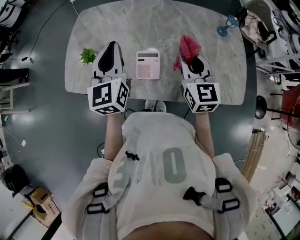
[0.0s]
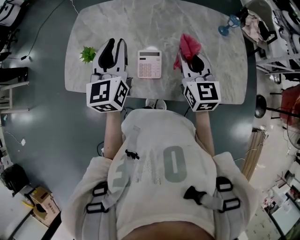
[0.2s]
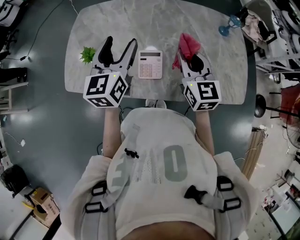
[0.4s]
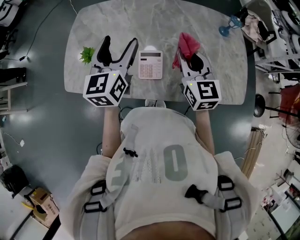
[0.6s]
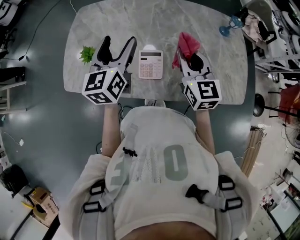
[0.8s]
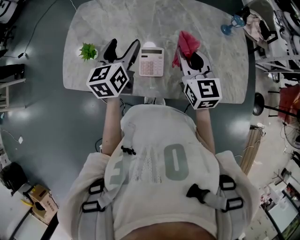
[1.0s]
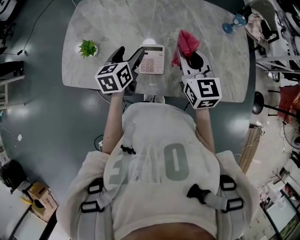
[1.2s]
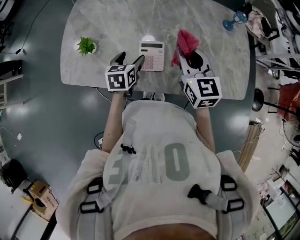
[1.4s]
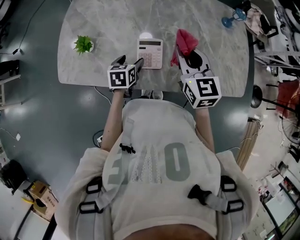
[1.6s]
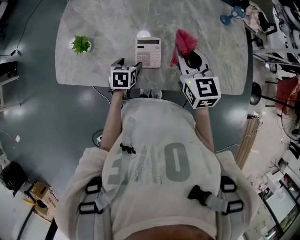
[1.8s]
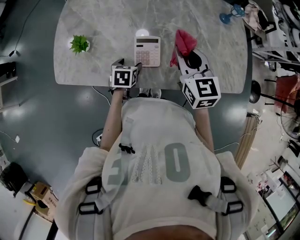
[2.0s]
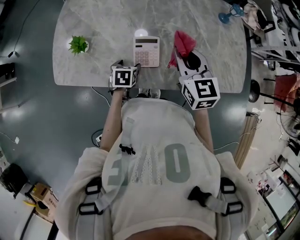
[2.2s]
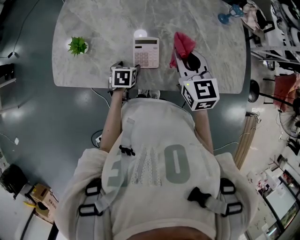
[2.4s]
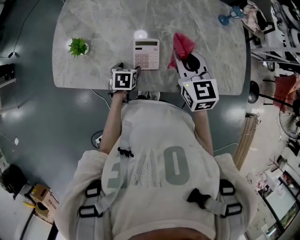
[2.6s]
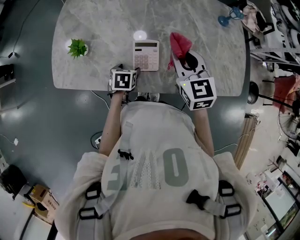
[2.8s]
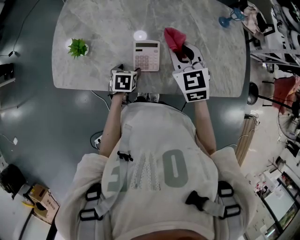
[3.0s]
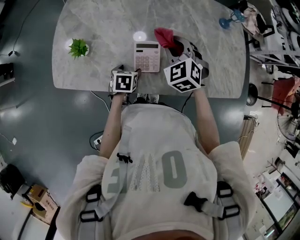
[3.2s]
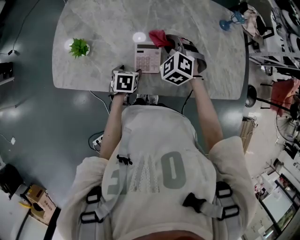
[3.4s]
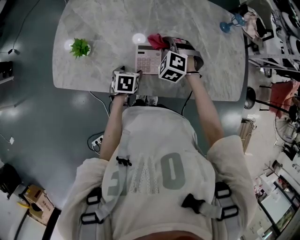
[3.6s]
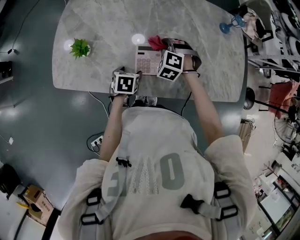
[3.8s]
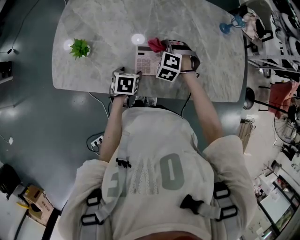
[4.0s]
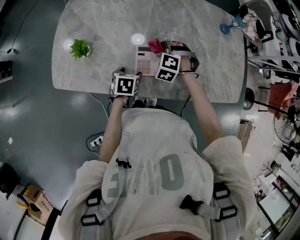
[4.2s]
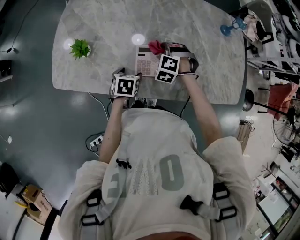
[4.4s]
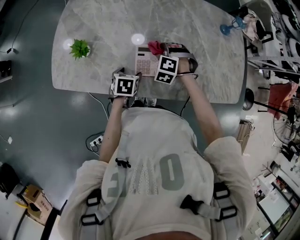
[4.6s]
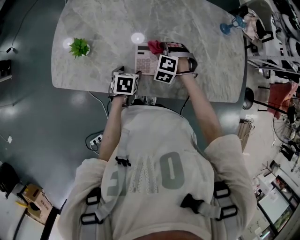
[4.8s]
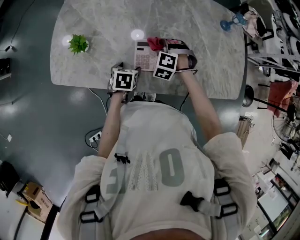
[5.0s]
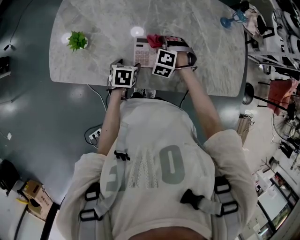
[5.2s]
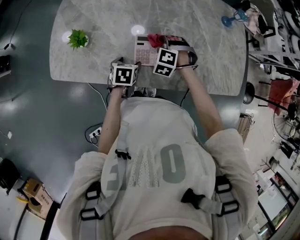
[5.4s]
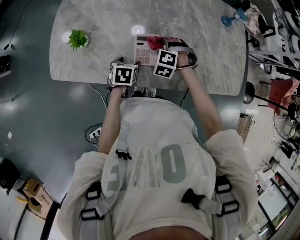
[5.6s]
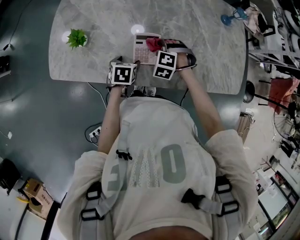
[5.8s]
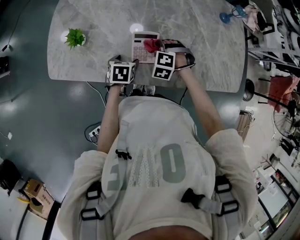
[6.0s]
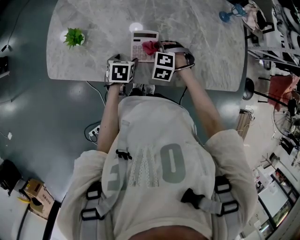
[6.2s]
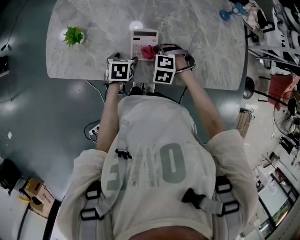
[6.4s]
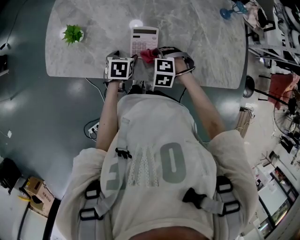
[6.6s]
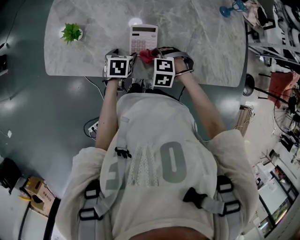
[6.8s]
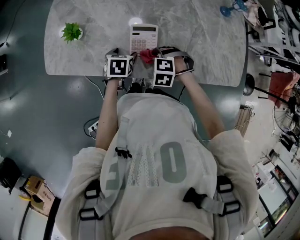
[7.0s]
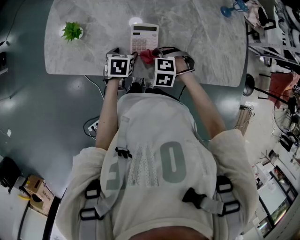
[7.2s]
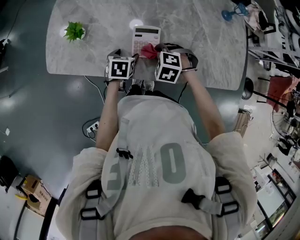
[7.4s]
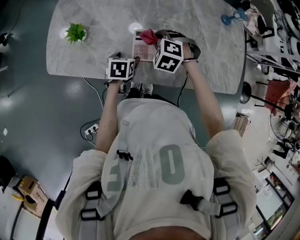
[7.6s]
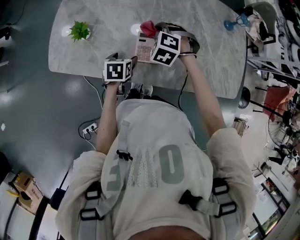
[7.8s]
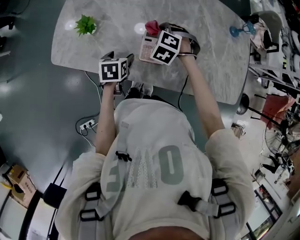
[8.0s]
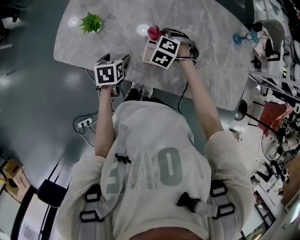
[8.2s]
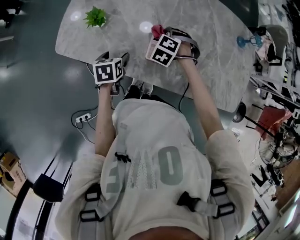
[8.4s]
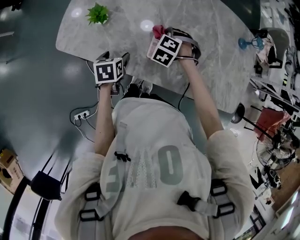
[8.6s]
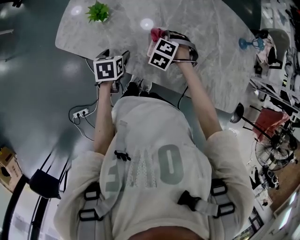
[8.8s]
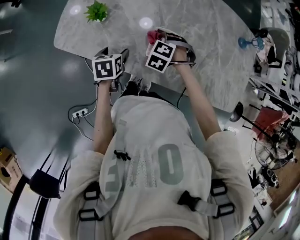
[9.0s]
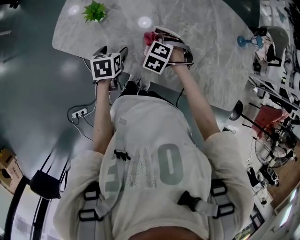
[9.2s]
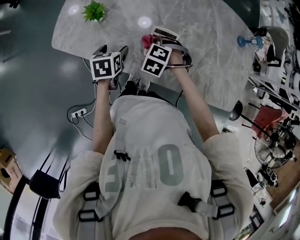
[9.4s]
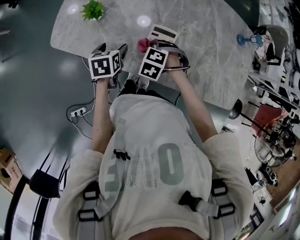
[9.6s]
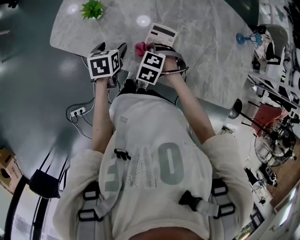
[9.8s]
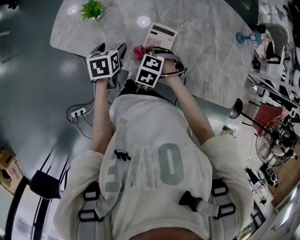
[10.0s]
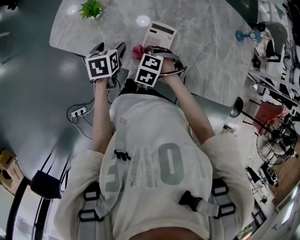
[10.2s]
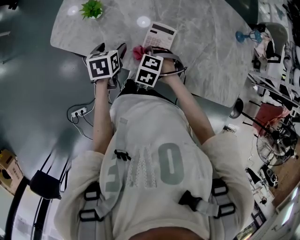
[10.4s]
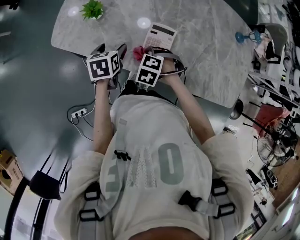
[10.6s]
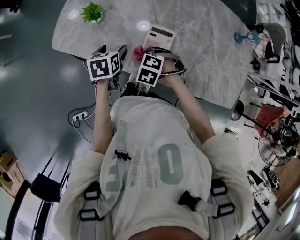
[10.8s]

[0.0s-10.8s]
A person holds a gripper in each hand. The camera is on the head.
0.0s to 1.6s: The right gripper shifts by approximately 5 cm, while the left gripper heads downward, covering about 30 cm, tilts its fingers roughly 40 degrees downward, and opens.
1.6s to 3.0s: The left gripper goes roughly 5 cm downward.
3.0s to 4.6s: The right gripper goes about 20 cm downward, and rotates around the line of its fingers by about 50 degrees, counterclockwise from behind.
4.6s to 6.2s: The right gripper heads backward, covering some 5 cm.
6.2s to 7.8s: The right gripper moves upward, about 10 cm.
7.8s to 9.2s: The right gripper shifts approximately 10 cm downward. Meanwhile the left gripper moves to the left, some 10 cm.
9.2s to 10.8s: The right gripper moves some 10 cm.

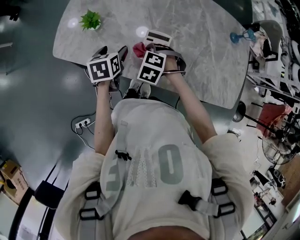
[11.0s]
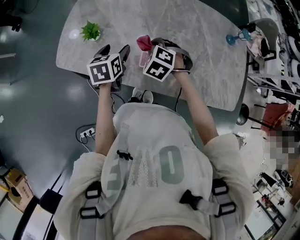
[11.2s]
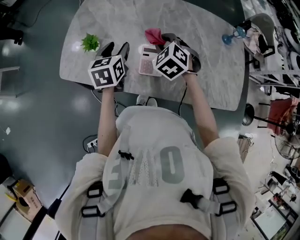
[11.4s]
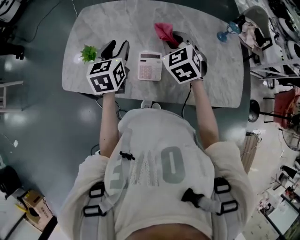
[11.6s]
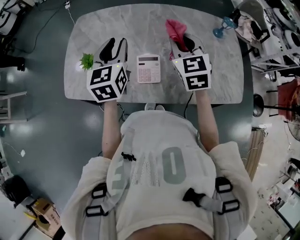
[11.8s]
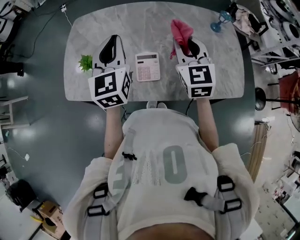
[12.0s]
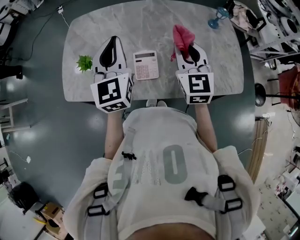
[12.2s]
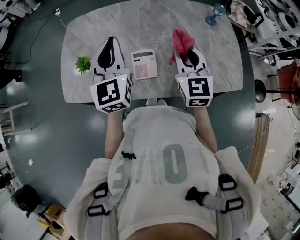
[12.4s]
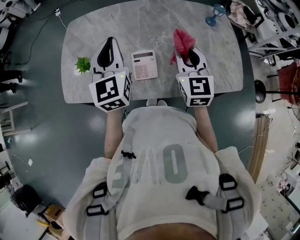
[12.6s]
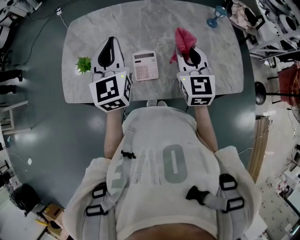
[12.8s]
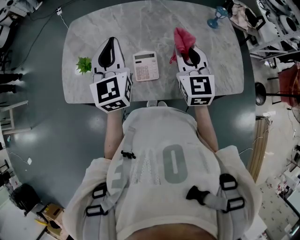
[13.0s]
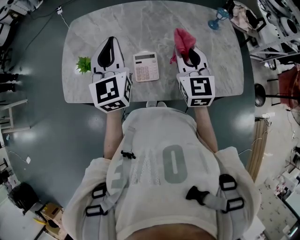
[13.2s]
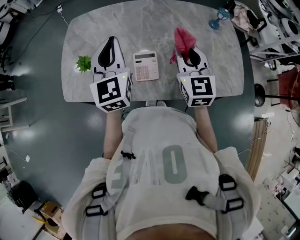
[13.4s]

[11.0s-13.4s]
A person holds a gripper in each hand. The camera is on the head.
11.0s to 12.2s: The grippers both shift upward and to the right by about 30 cm. The right gripper tips its fingers upward by about 60 degrees; the left gripper tips its fingers upward by roughly 40 degrees, and closes up.
12.2s to 13.4s: The grippers stay close to where they were, moving slightly.

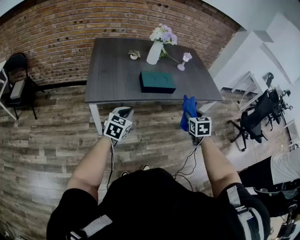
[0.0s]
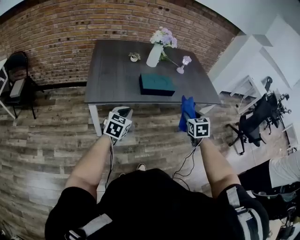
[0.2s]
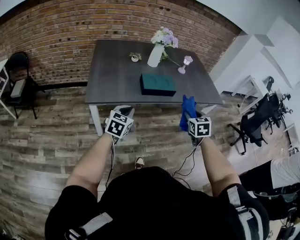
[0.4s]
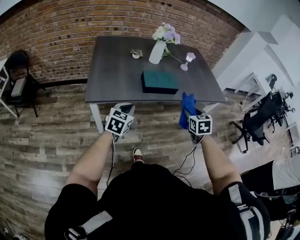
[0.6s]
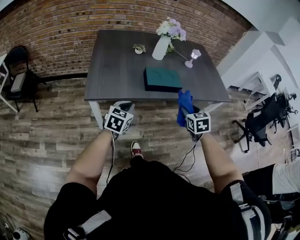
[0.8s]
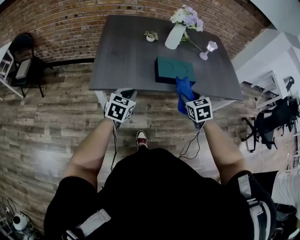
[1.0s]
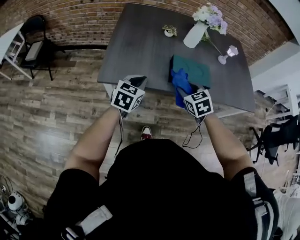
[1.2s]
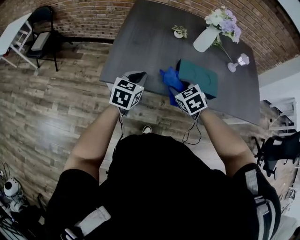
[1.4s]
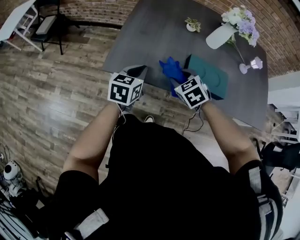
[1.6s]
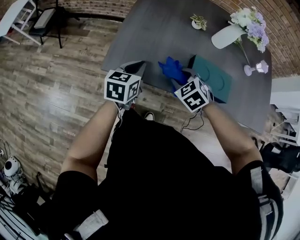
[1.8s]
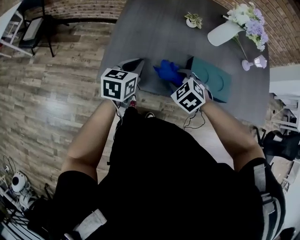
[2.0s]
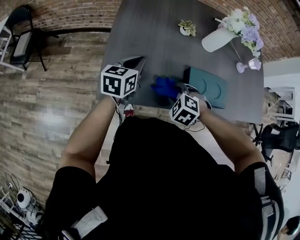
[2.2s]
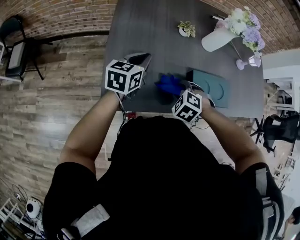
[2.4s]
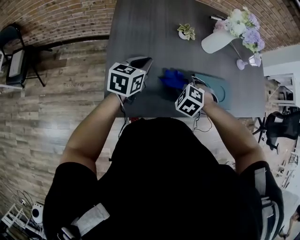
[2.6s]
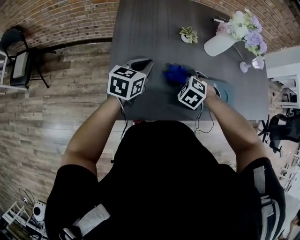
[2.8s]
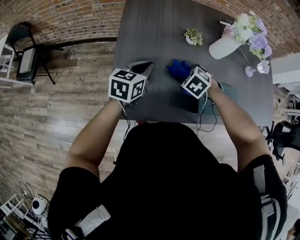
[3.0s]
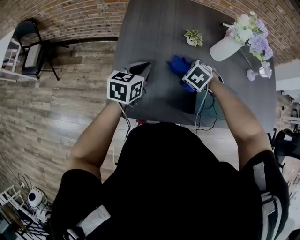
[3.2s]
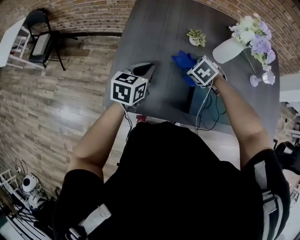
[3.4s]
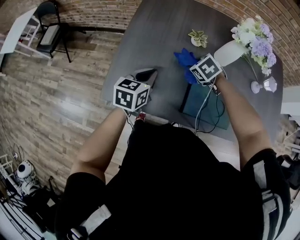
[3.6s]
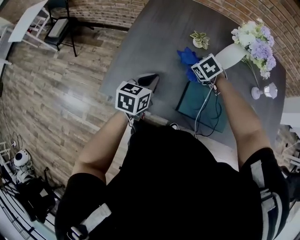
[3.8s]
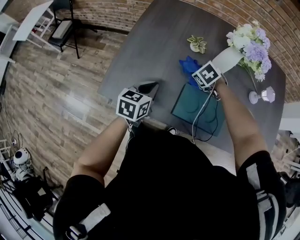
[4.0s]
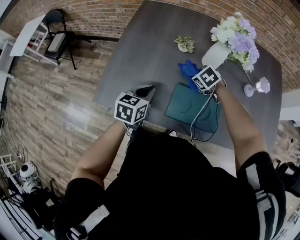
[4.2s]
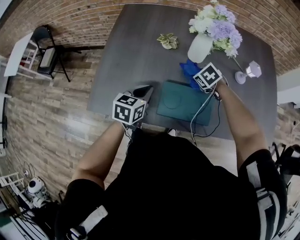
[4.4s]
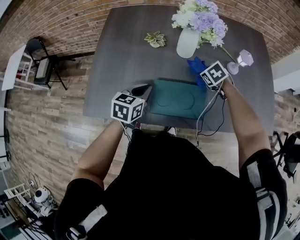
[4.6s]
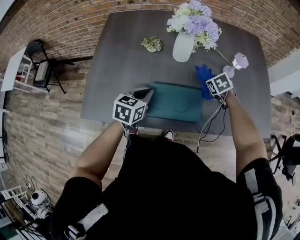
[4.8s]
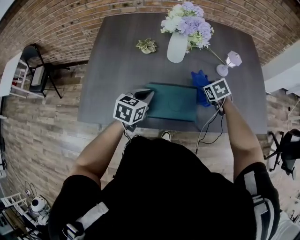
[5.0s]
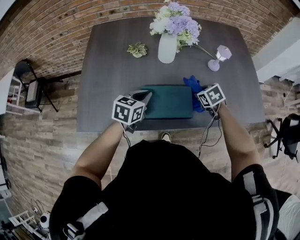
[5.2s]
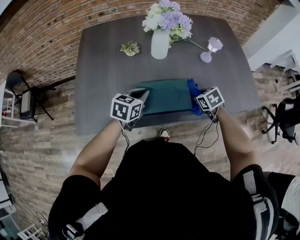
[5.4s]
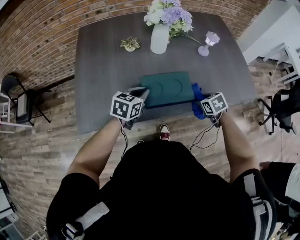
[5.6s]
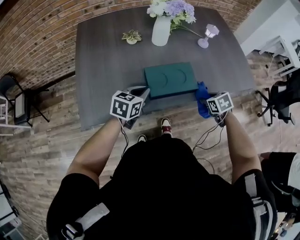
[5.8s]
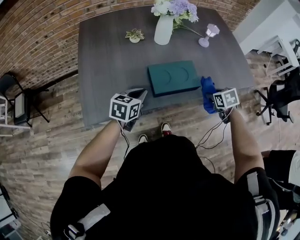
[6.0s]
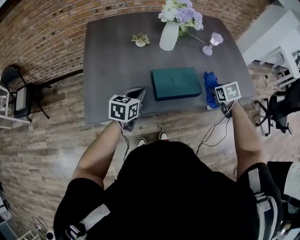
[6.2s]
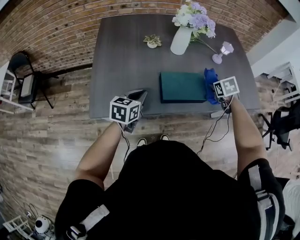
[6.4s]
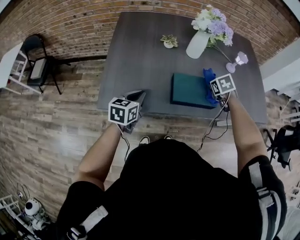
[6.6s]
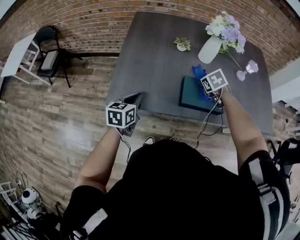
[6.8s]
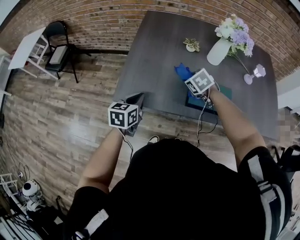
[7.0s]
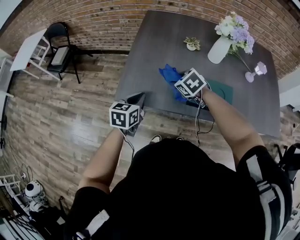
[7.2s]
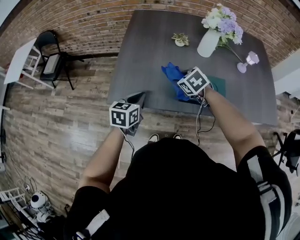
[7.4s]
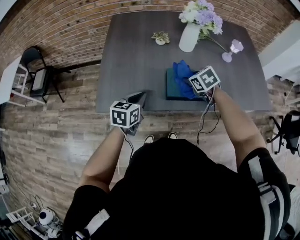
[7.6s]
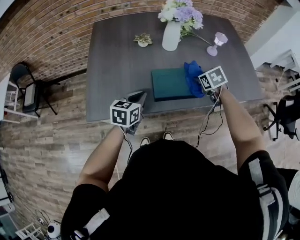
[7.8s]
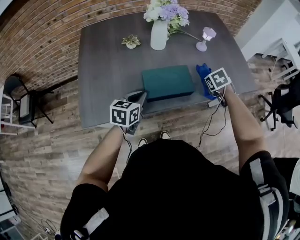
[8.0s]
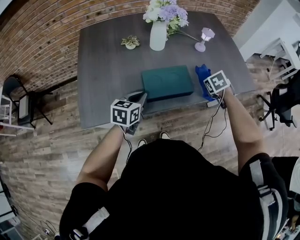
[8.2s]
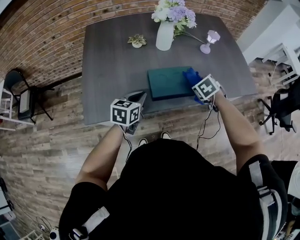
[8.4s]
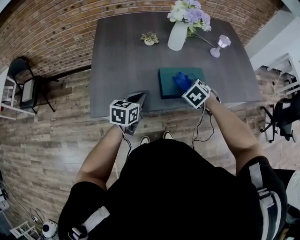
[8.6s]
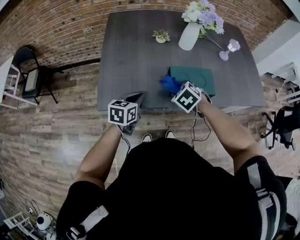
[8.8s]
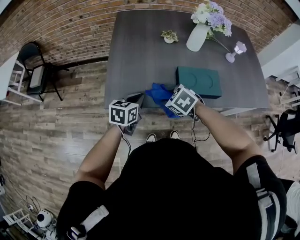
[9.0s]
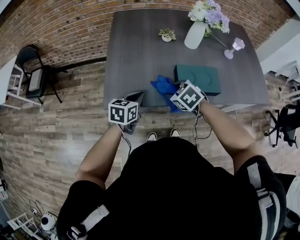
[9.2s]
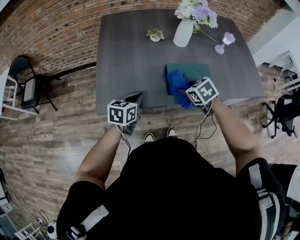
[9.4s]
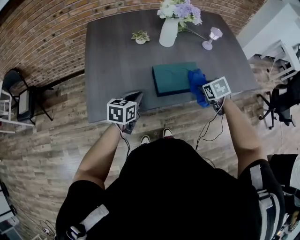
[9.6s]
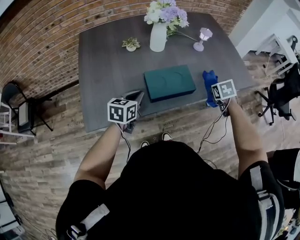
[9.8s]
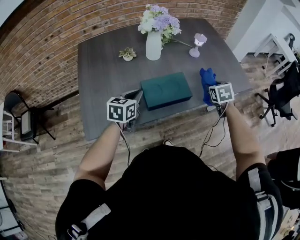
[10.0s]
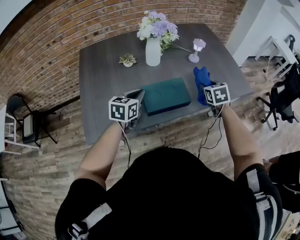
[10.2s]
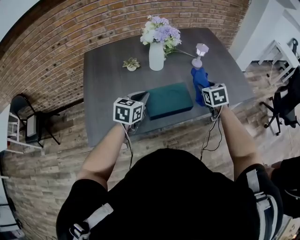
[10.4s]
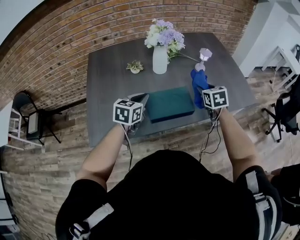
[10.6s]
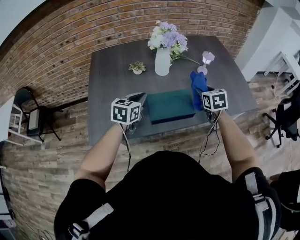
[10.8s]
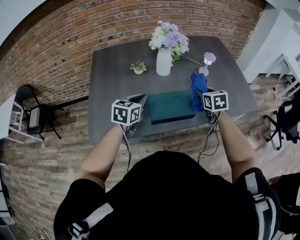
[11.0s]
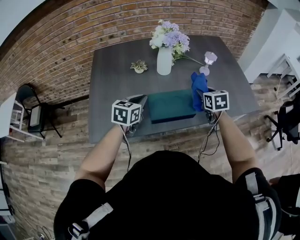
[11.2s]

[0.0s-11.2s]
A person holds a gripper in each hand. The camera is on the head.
0.0s to 1.6s: The left gripper ends up approximately 20 cm from where it was, and turns by approximately 30 degrees. The right gripper changes place by about 35 cm, and turns by roughly 60 degrees.
1.6s to 3.2s: The right gripper moves roughly 20 cm, and swivels about 20 degrees. Meanwhile the left gripper ends up roughly 20 cm from where it was.
3.2s to 4.8s: The right gripper travels to the right by approximately 30 cm, and rotates approximately 30 degrees. Meanwhile the left gripper shifts approximately 25 cm to the right and backward.
4.8s to 6.4s: The right gripper travels backward and upward by some 15 cm. The left gripper travels backward and to the left by about 10 cm.
9.6s to 11.2s: The two grippers go about 15 cm forward and upward. The right gripper moves some 10 cm to the right and comes back, and rotates about 30 degrees.
